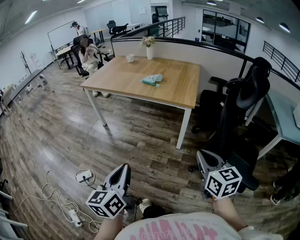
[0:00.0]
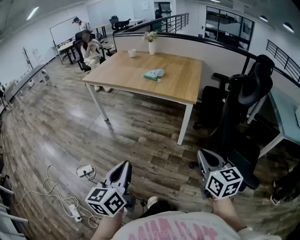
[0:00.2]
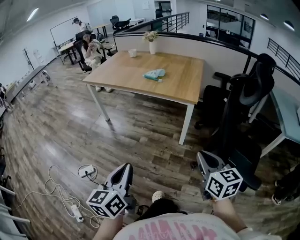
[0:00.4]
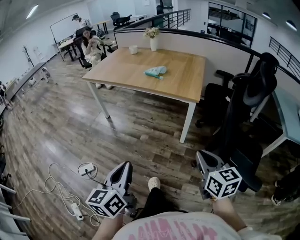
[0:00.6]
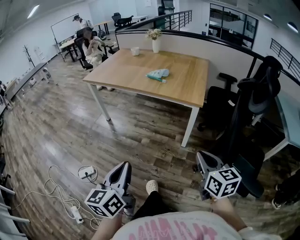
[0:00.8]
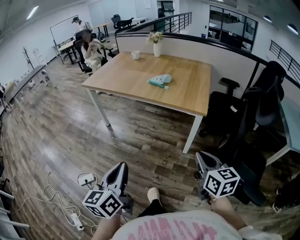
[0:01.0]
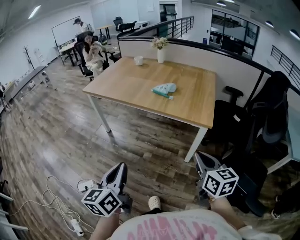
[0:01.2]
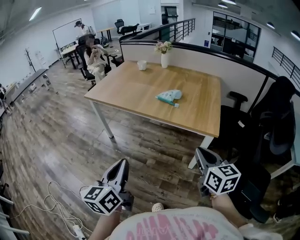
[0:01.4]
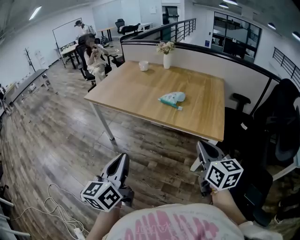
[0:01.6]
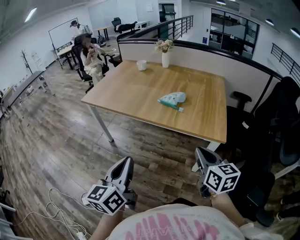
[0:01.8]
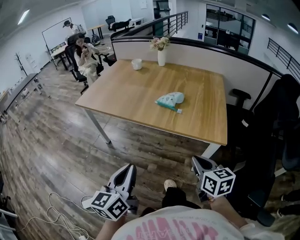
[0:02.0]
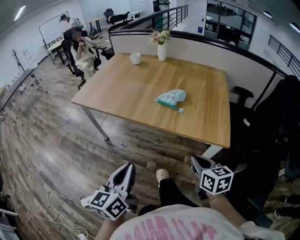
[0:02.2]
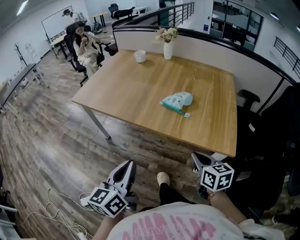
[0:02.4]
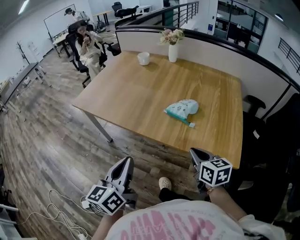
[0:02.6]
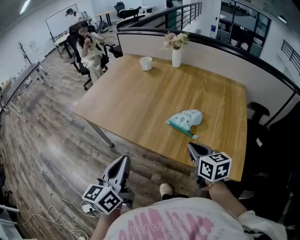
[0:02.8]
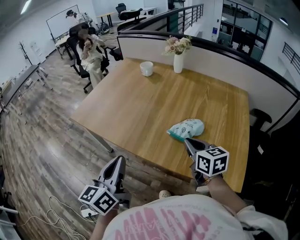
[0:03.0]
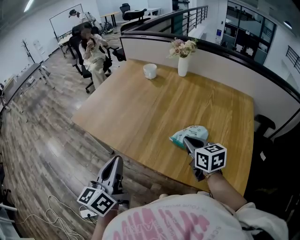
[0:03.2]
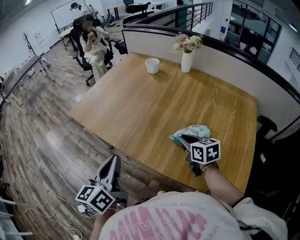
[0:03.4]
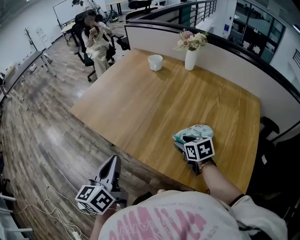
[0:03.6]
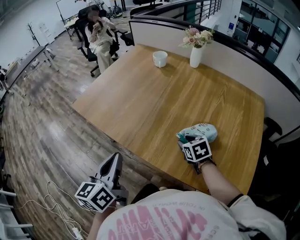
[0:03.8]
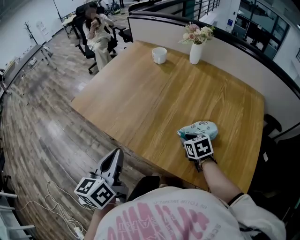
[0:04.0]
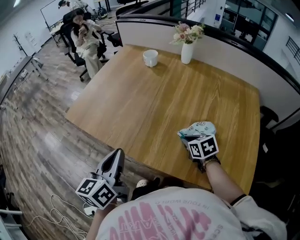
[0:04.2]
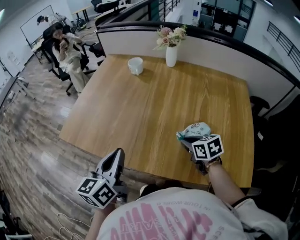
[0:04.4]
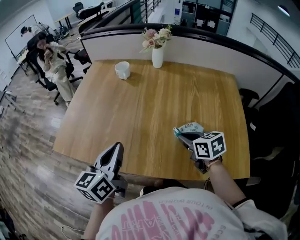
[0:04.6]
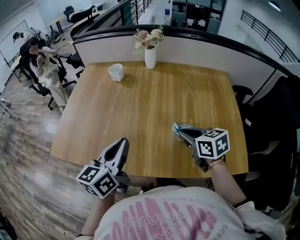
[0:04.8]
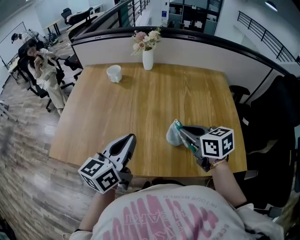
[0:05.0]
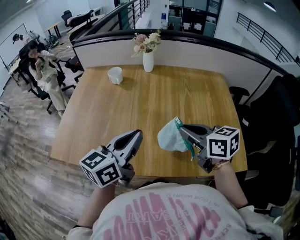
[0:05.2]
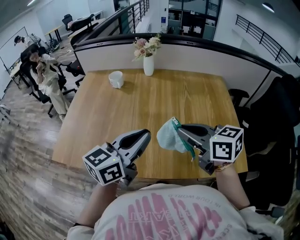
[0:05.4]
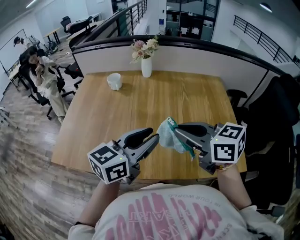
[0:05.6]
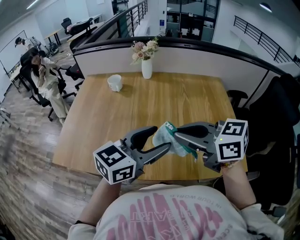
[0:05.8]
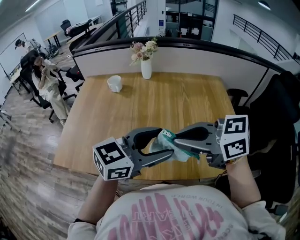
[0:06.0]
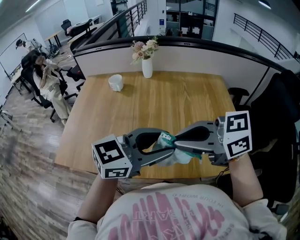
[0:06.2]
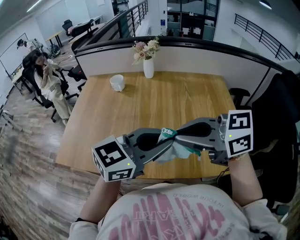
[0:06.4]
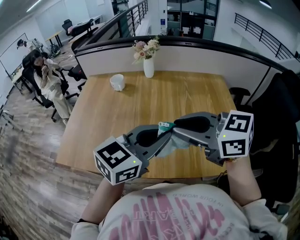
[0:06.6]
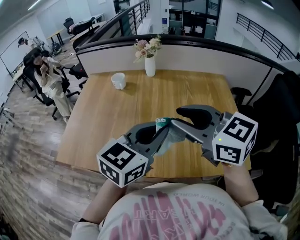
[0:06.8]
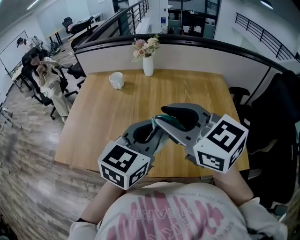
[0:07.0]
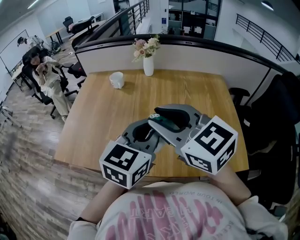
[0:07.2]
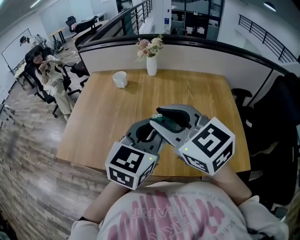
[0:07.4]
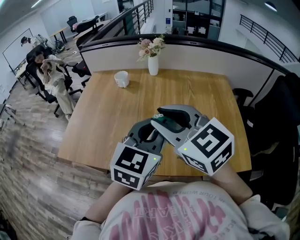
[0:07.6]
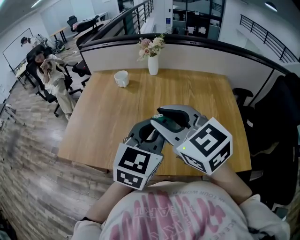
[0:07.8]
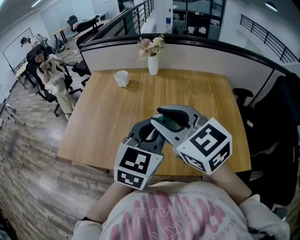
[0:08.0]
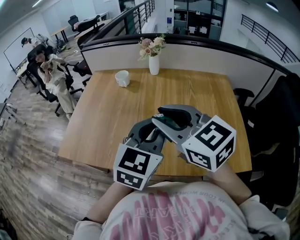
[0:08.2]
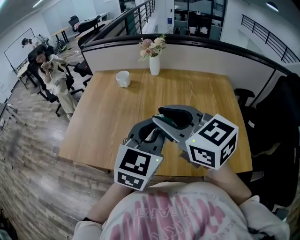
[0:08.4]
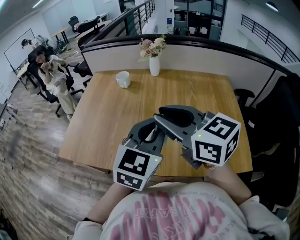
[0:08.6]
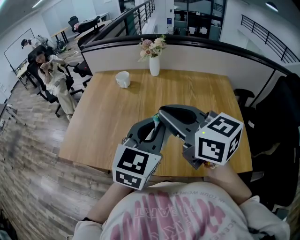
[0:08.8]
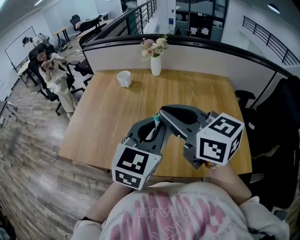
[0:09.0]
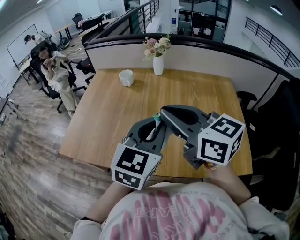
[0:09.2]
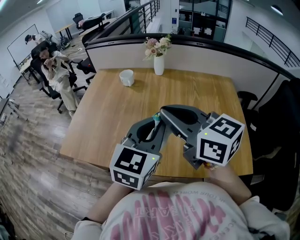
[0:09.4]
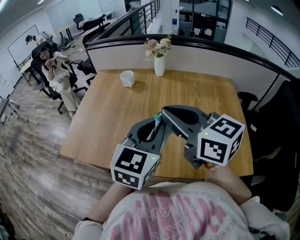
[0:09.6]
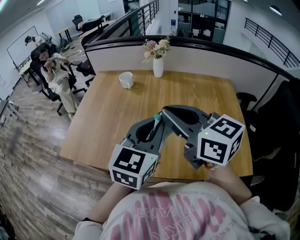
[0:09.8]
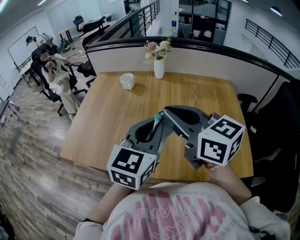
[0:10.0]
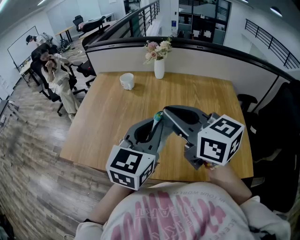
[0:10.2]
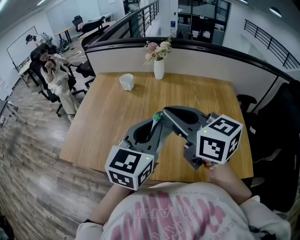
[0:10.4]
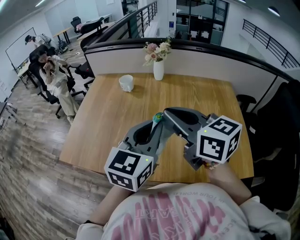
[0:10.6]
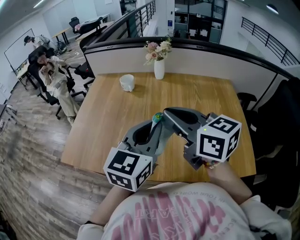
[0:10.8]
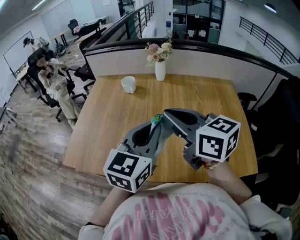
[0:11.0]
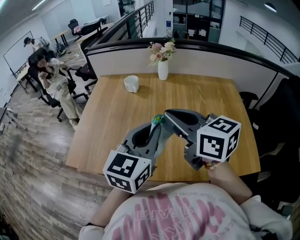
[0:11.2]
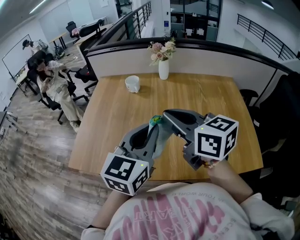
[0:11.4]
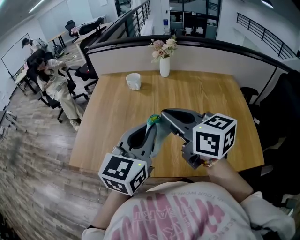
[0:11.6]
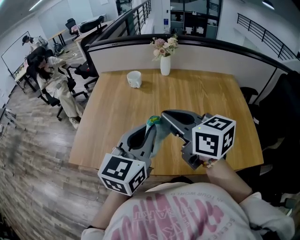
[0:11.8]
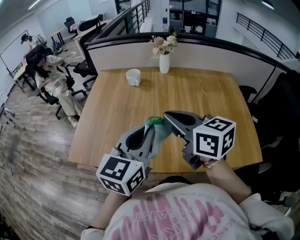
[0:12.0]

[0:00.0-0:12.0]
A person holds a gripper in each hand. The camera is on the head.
0:00.0 to 0:01.6: The two grippers go approximately 30 cm forward.
0:01.6 to 0:03.0: The grippers both shift forward by some 35 cm.
0:03.0 to 0:04.4: The right gripper travels downward and forward by about 15 cm, and opens and closes again. The left gripper heads forward, covering about 15 cm.
0:04.4 to 0:06.0: The left gripper changes place by roughly 20 cm, changes its angle by roughly 70 degrees, and opens up; the right gripper is displaced upward by some 25 cm, and turns by approximately 40 degrees.
0:06.0 to 0:07.6: The left gripper rotates approximately 40 degrees, and closes; the right gripper shifts by about 10 cm, changes its angle by approximately 30 degrees, and opens.
0:07.6 to 0:09.0: The right gripper turns by roughly 20 degrees, and closes its fingers.
0:09.0 to 0:10.4: The grippers move only a little.
0:10.4 to 0:12.0: The right gripper goes about 10 cm to the left and downward; the left gripper is displaced to the left by approximately 10 cm.

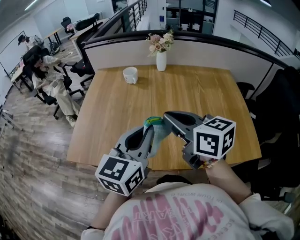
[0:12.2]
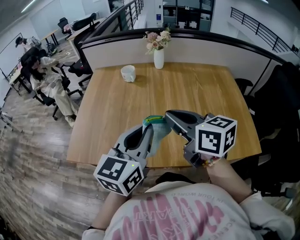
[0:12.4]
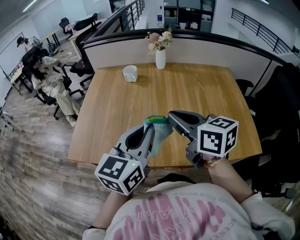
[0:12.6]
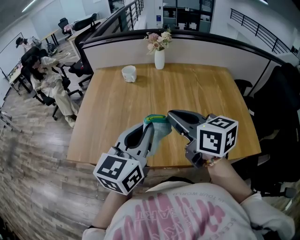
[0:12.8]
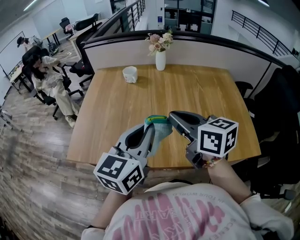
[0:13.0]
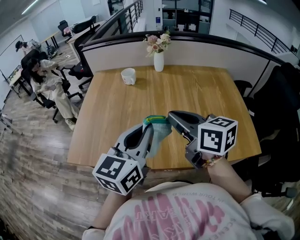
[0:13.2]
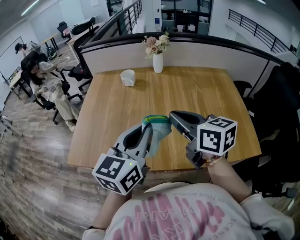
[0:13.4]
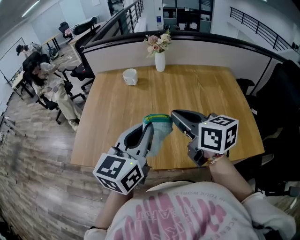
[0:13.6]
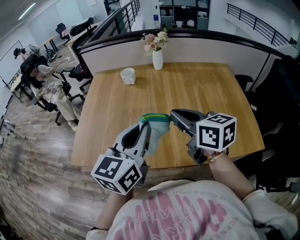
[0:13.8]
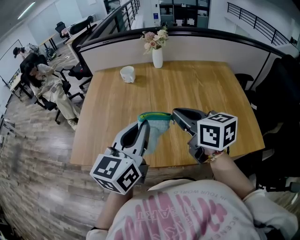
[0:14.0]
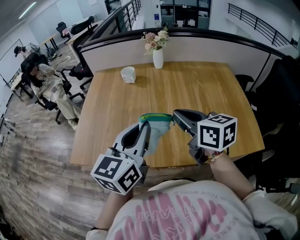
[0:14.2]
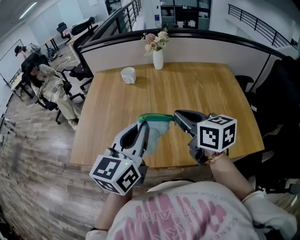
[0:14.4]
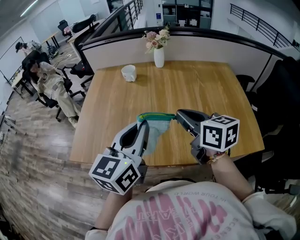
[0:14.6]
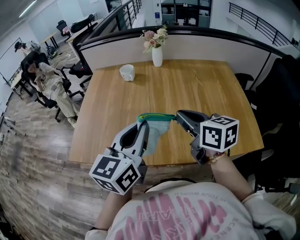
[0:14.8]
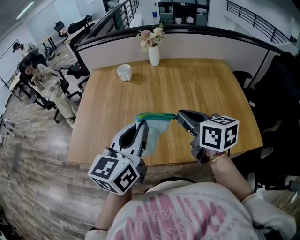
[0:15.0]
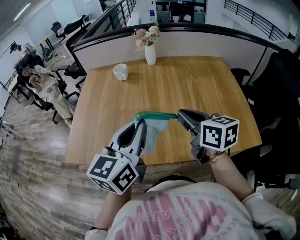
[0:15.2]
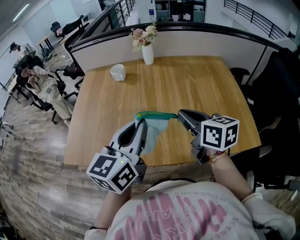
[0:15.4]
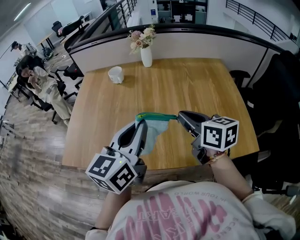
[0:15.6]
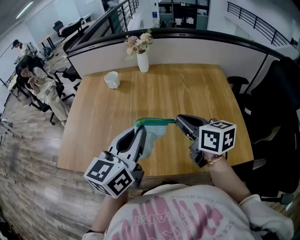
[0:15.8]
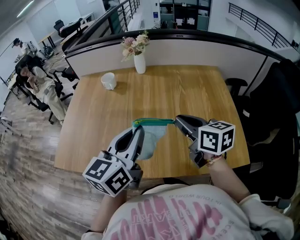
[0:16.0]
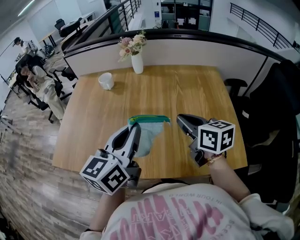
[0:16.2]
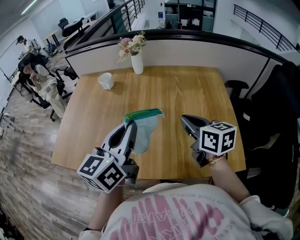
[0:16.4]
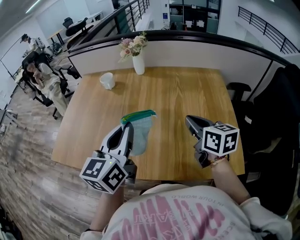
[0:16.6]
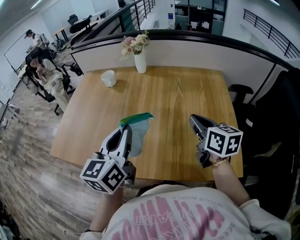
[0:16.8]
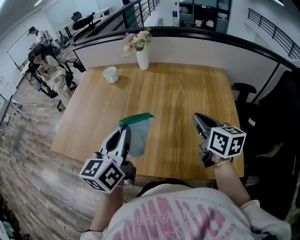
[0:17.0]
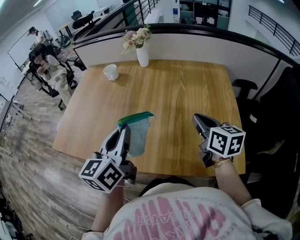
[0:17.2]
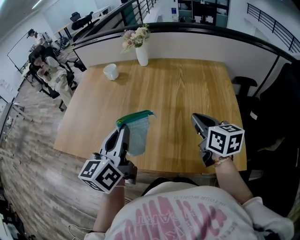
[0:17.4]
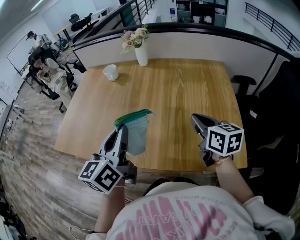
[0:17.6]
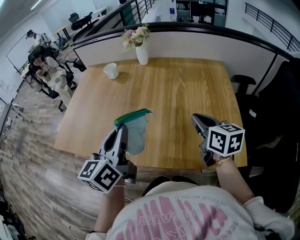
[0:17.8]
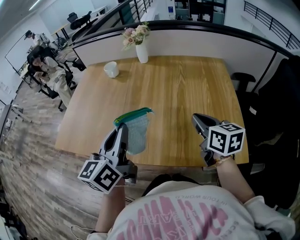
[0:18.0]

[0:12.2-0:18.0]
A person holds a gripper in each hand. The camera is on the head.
0:12.2 to 0:13.6: The grippers move only a little.
0:13.6 to 0:15.0: The right gripper shifts by some 5 cm.
0:15.0 to 0:16.6: The right gripper is displaced to the right by about 20 cm, while the left gripper shifts some 15 cm to the right.
0:16.6 to 0:18.0: The right gripper shifts by approximately 5 cm, while the left gripper moves backward, about 5 cm.

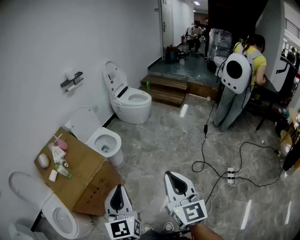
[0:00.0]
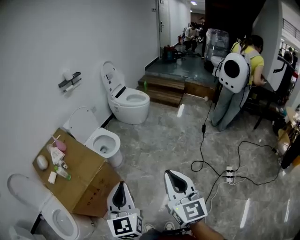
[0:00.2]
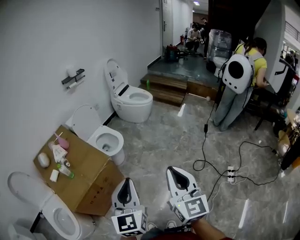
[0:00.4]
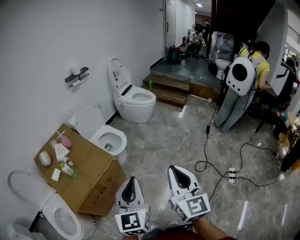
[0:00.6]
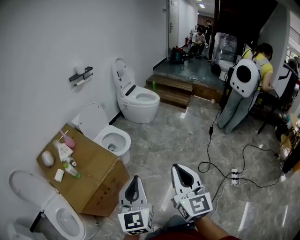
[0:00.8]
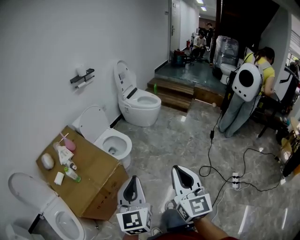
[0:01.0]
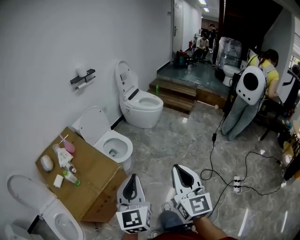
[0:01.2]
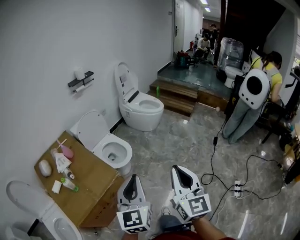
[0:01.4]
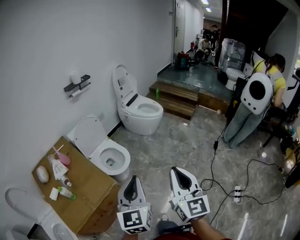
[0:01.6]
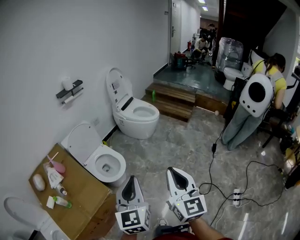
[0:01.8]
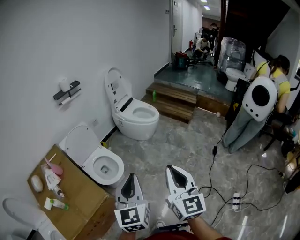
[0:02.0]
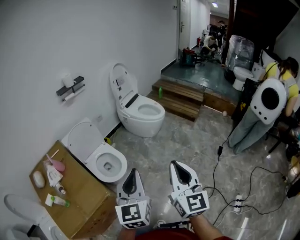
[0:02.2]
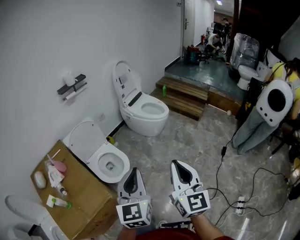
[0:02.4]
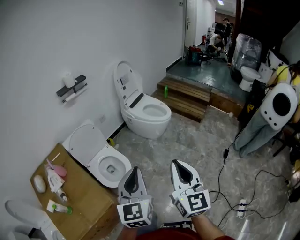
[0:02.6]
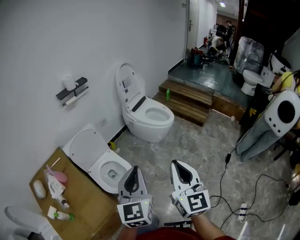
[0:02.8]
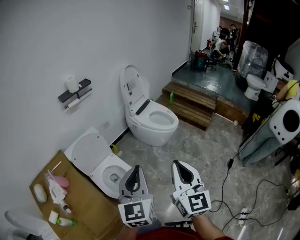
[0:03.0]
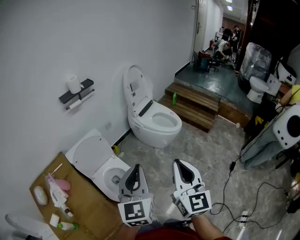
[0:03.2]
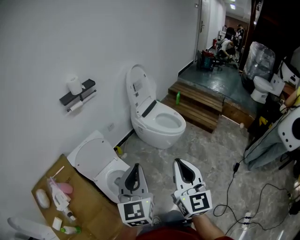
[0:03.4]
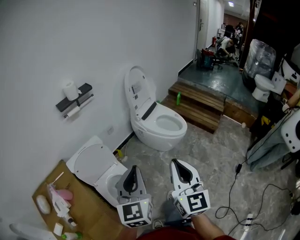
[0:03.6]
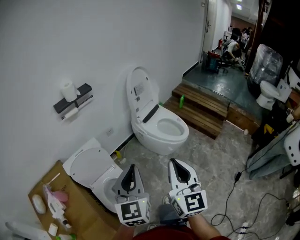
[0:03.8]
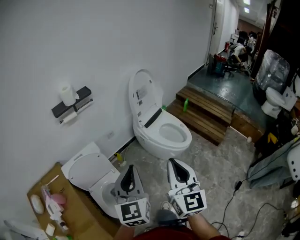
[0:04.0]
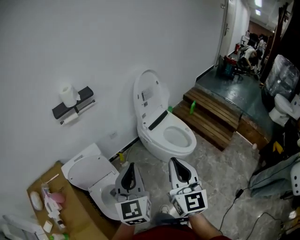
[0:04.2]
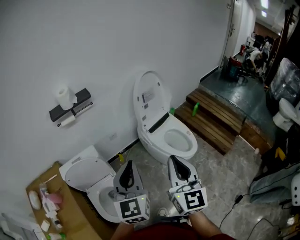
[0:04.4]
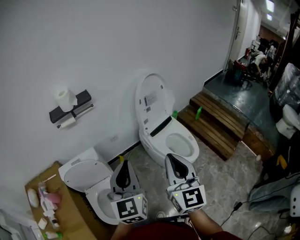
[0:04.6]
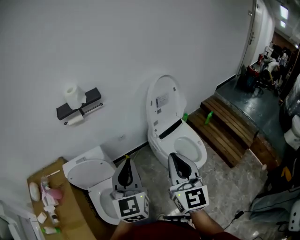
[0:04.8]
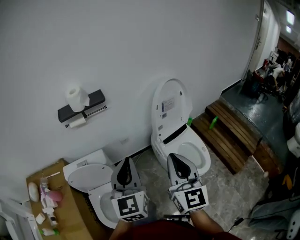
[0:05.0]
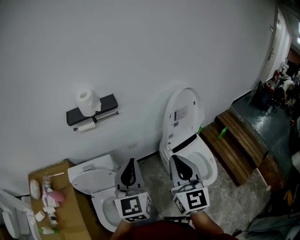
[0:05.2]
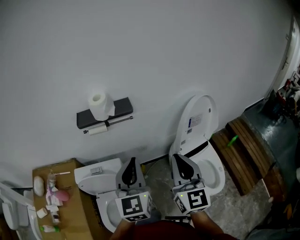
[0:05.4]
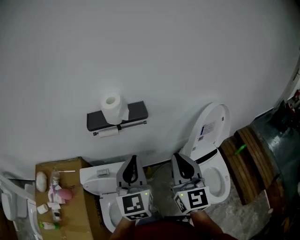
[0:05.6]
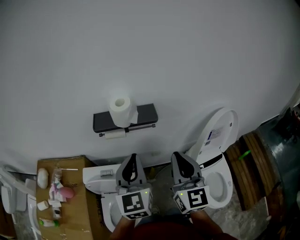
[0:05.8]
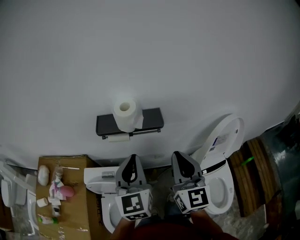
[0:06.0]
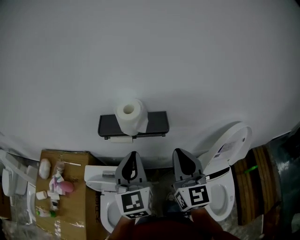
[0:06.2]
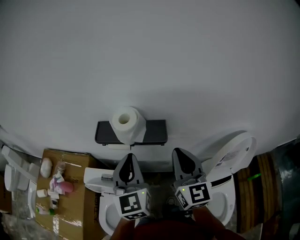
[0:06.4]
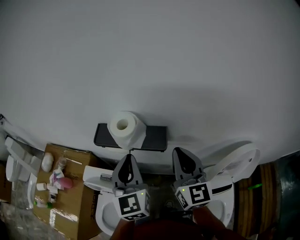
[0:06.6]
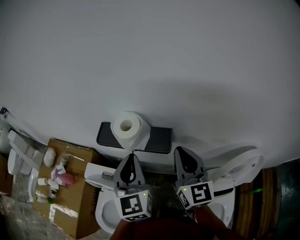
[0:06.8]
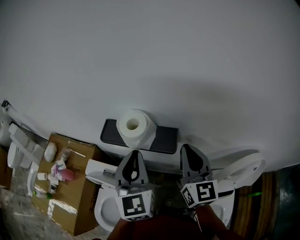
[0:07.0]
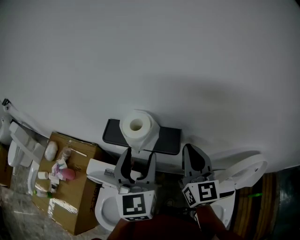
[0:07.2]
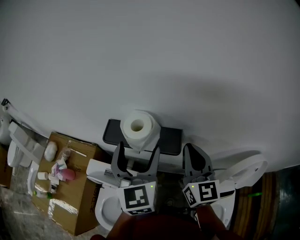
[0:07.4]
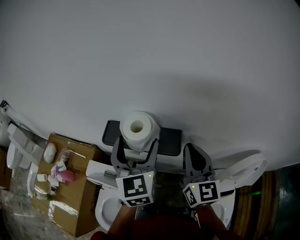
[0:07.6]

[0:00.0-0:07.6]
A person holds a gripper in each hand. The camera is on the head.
0:00.0 to 0:01.6: Both grippers travel together forward, roughly 25 cm.
0:01.6 to 0:03.0: Both grippers travel together forward, roughly 35 cm.
0:03.0 to 0:04.6: The pair of grippers is taken forward, roughly 40 cm. The left gripper swivels roughly 20 degrees.
0:04.6 to 0:06.0: The right gripper moves about 40 cm, and changes its angle by approximately 30 degrees; the left gripper changes place by roughly 35 cm, and rotates about 30 degrees.
0:06.0 to 0:07.6: Both grippers move forward, about 15 cm. The left gripper opens up.
